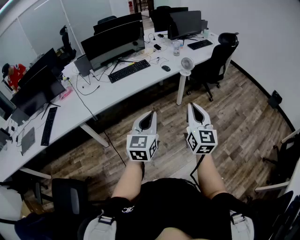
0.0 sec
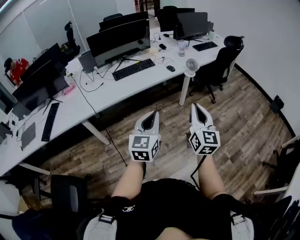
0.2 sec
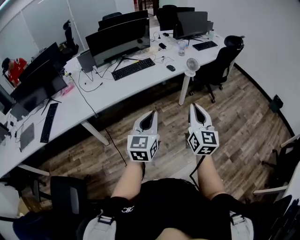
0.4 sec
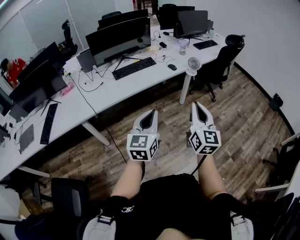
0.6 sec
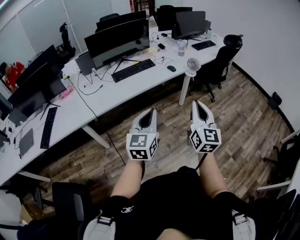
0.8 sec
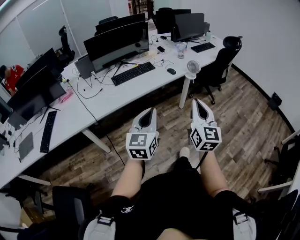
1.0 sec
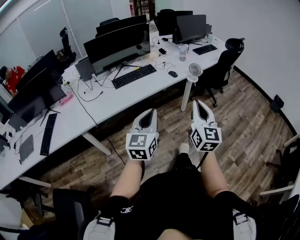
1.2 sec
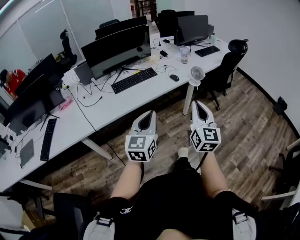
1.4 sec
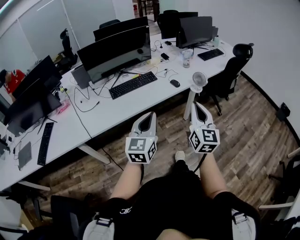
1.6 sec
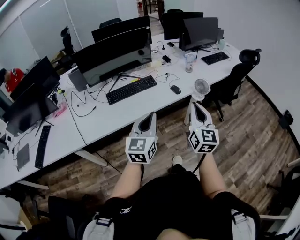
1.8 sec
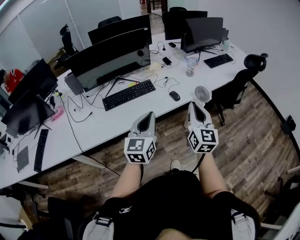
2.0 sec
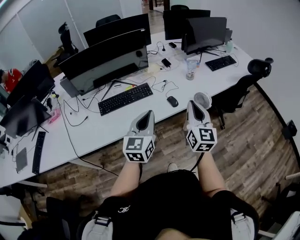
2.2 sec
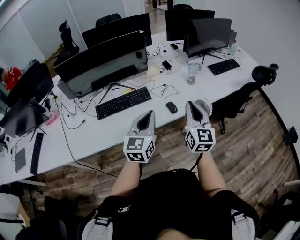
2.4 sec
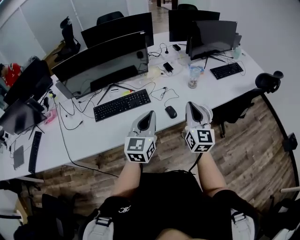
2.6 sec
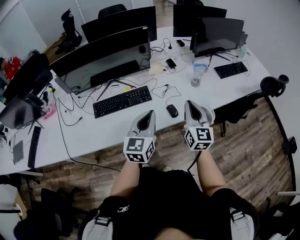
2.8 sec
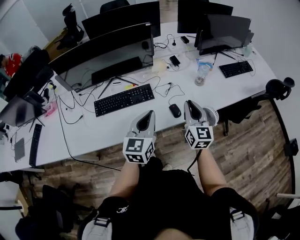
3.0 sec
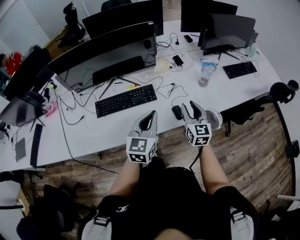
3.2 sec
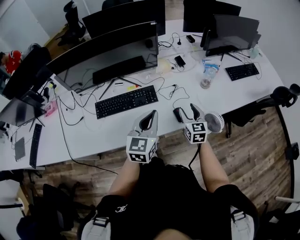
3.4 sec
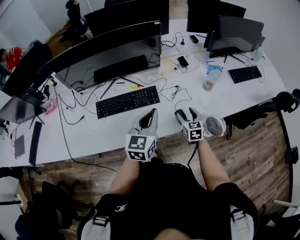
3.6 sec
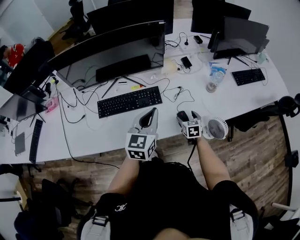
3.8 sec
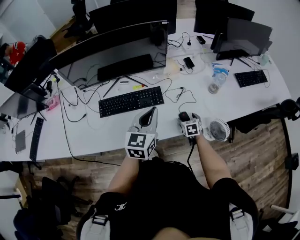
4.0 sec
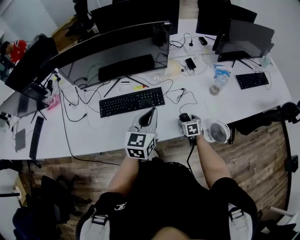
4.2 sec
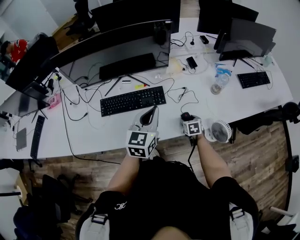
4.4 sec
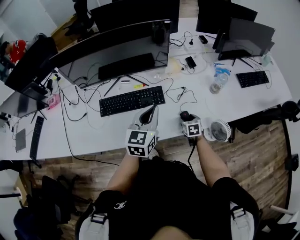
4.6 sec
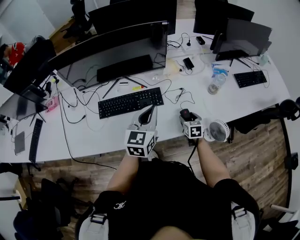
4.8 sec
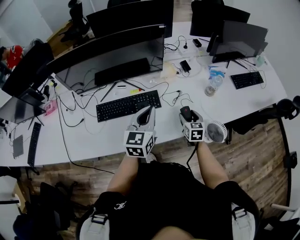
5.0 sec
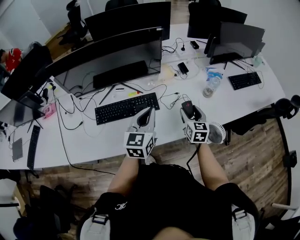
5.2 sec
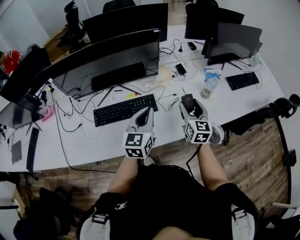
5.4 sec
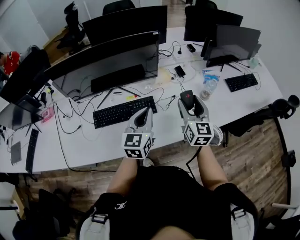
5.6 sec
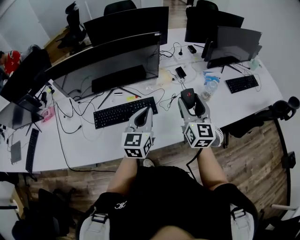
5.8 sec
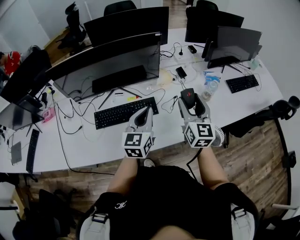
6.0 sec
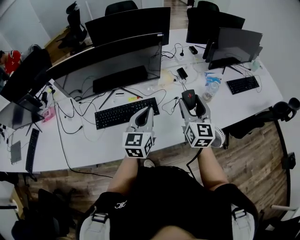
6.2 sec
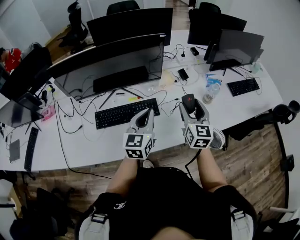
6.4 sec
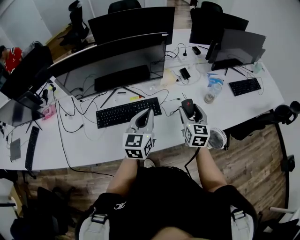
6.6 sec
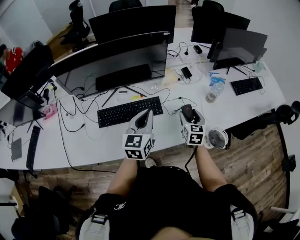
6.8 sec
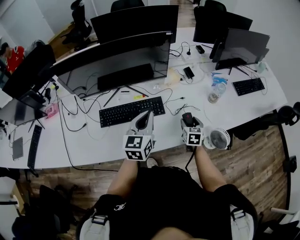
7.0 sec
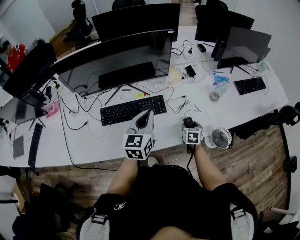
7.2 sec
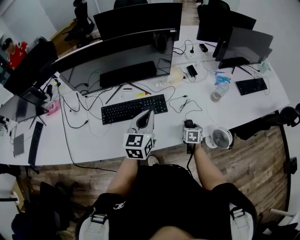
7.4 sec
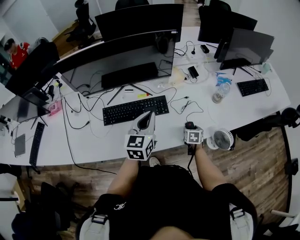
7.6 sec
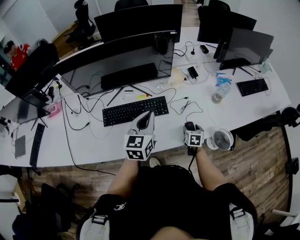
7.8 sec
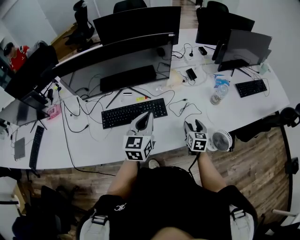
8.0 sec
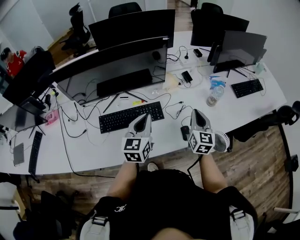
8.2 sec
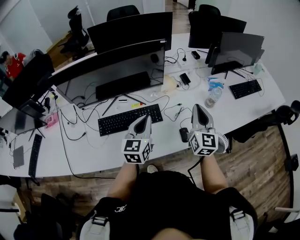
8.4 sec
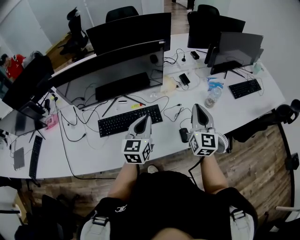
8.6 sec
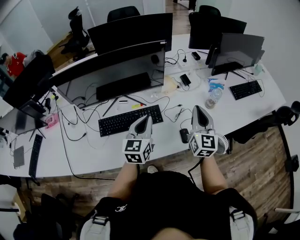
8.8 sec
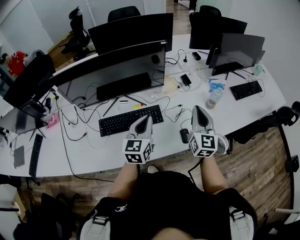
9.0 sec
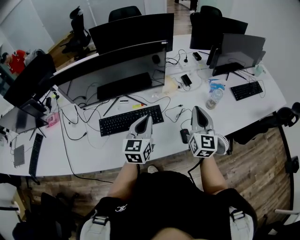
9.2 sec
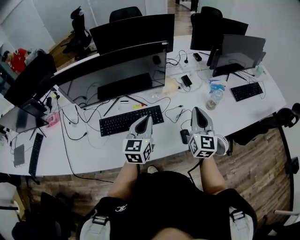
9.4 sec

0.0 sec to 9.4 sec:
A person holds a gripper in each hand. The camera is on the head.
0.0 sec to 1.6 sec: Both grippers travel together forward, about 20 cm.
1.6 sec to 3.2 sec: Both grippers are carried forward, some 40 cm. The right gripper swivels about 30 degrees.
3.2 sec to 4.8 sec: The right gripper shifts approximately 20 cm downward, tips its fingers downward by approximately 30 degrees, and opens up, while the left gripper is displaced forward by roughly 10 cm.
4.8 sec to 6.2 sec: The right gripper heads upward, covering roughly 30 cm, and points its fingers about 40 degrees further upward.
6.2 sec to 7.8 sec: The right gripper moves downward, about 35 cm, and tilts its fingers some 50 degrees downward. The left gripper shifts by roughly 5 cm.
7.8 sec to 9.4 sec: The right gripper shifts some 30 cm upward, points its fingers some 50 degrees further upward, and closes.

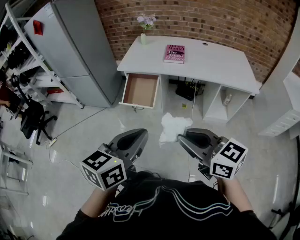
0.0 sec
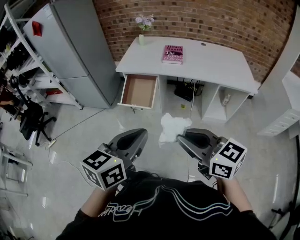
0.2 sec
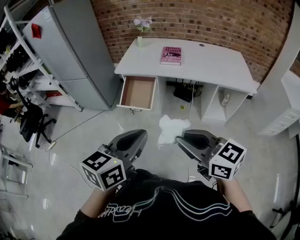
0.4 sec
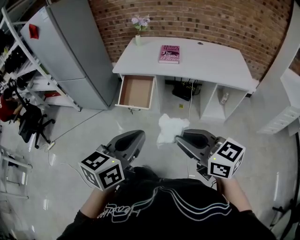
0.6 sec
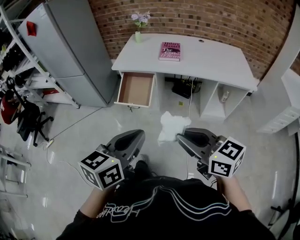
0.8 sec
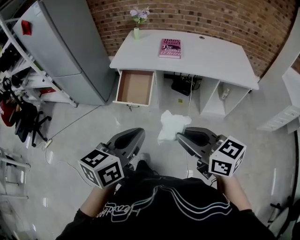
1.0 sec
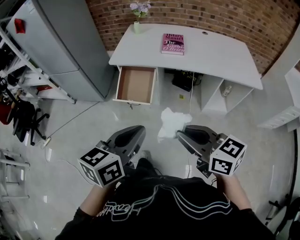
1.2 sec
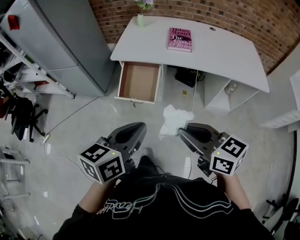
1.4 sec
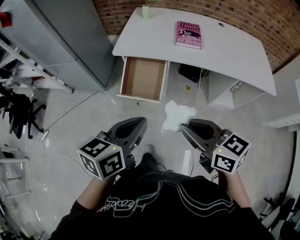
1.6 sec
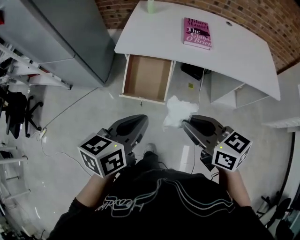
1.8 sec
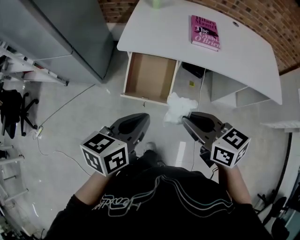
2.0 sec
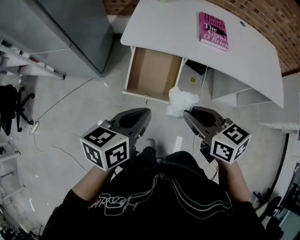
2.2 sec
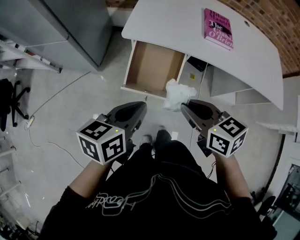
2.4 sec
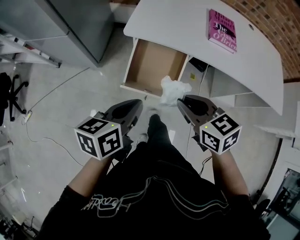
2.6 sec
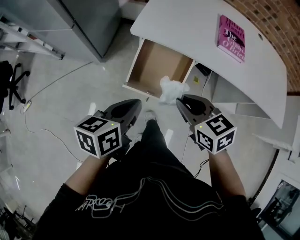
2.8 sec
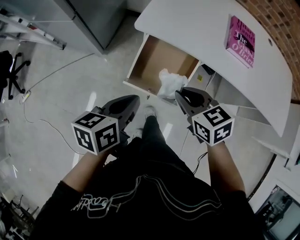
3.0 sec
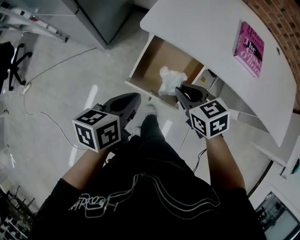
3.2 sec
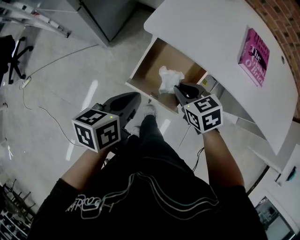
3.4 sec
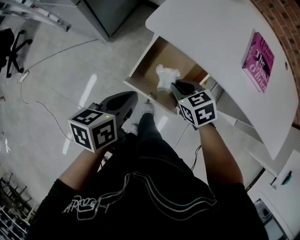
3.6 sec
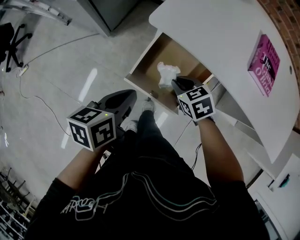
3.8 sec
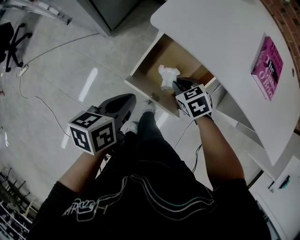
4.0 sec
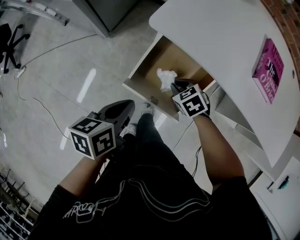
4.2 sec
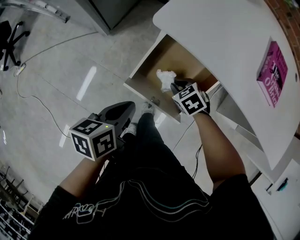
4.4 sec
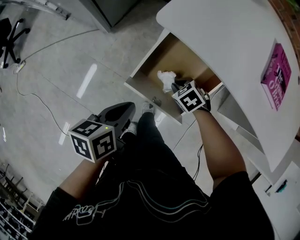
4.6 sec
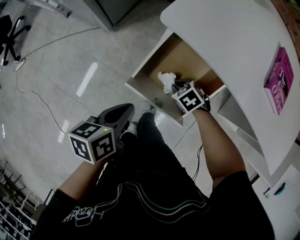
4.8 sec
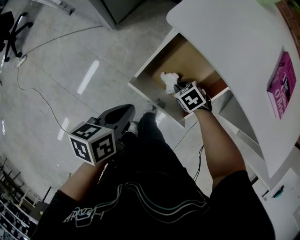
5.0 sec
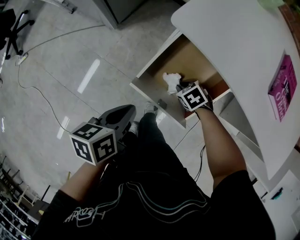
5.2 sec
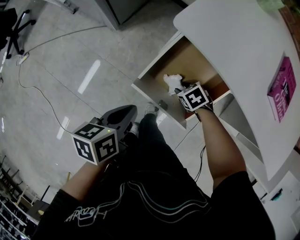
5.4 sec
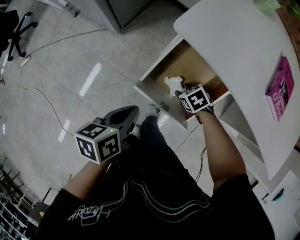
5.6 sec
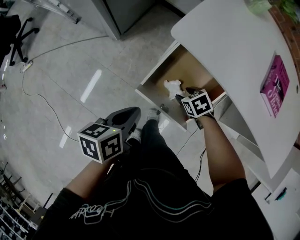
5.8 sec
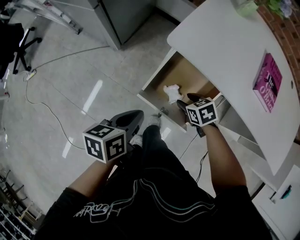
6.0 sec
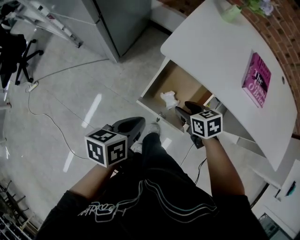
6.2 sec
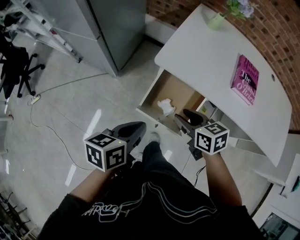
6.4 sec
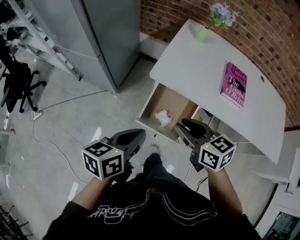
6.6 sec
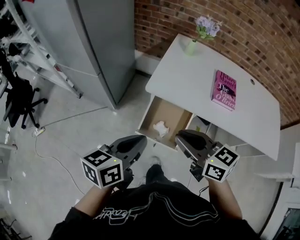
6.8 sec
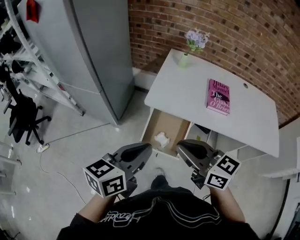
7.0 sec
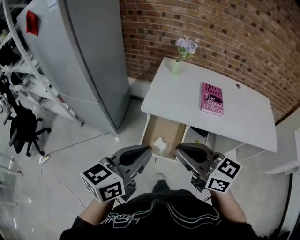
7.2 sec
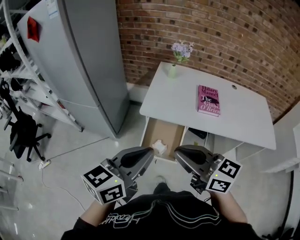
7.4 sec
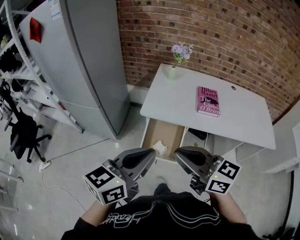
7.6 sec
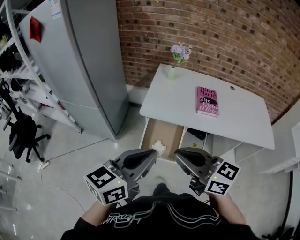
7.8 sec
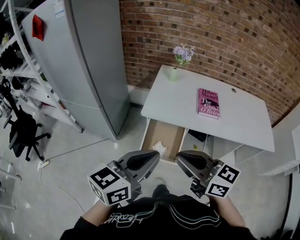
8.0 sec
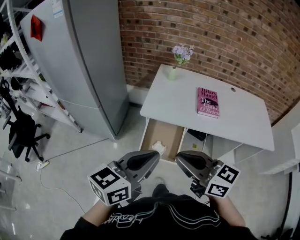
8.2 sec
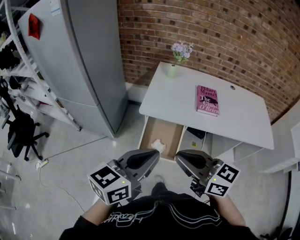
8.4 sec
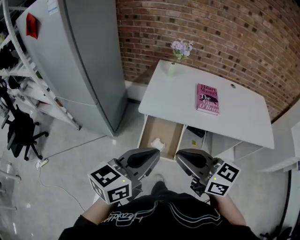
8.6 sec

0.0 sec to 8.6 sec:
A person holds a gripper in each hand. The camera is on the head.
0.0 sec to 1.4 sec: The two grippers go about 20 cm forward and downward.
1.4 sec to 2.8 sec: The grippers both shift forward, downward and to the left by approximately 40 cm. The right gripper swivels about 30 degrees.
2.8 sec to 4.4 sec: The right gripper goes roughly 35 cm downward and forward, and changes its angle by approximately 40 degrees; the left gripper moves downward and forward, roughly 20 cm, and swivels roughly 20 degrees.
4.4 sec to 5.8 sec: The right gripper opens up.
5.8 sec to 7.2 sec: The two grippers go some 50 cm upward. The left gripper points its fingers about 30 degrees further upward, while the right gripper tilts its fingers approximately 60 degrees upward, and closes up.
7.2 sec to 8.6 sec: There are only small adjustments of the grippers.

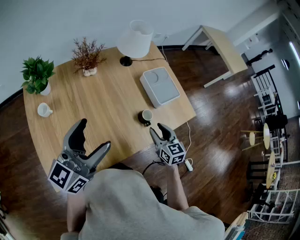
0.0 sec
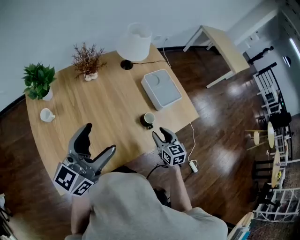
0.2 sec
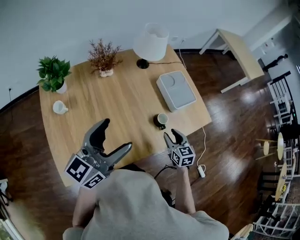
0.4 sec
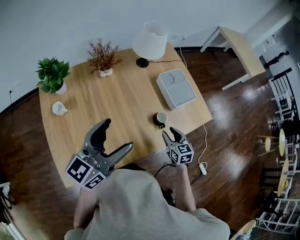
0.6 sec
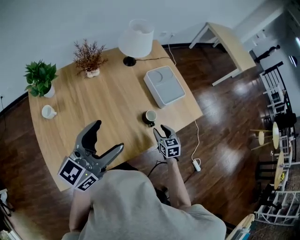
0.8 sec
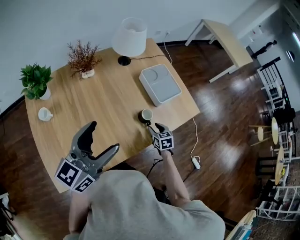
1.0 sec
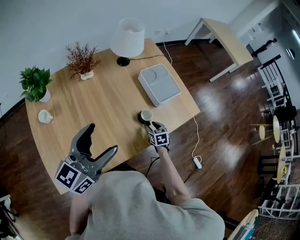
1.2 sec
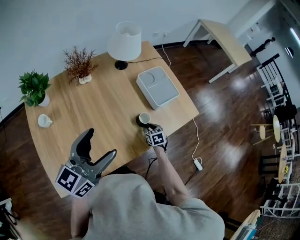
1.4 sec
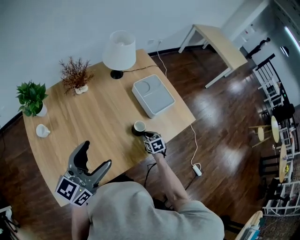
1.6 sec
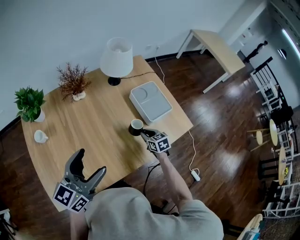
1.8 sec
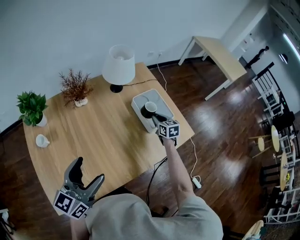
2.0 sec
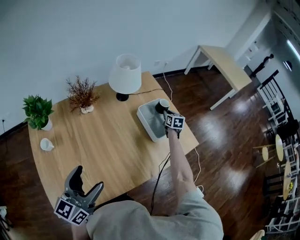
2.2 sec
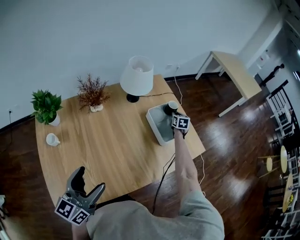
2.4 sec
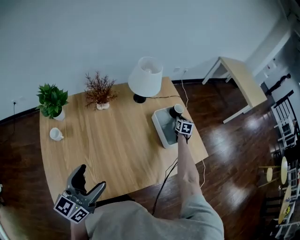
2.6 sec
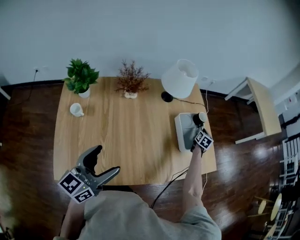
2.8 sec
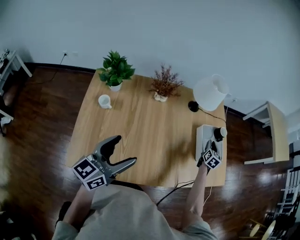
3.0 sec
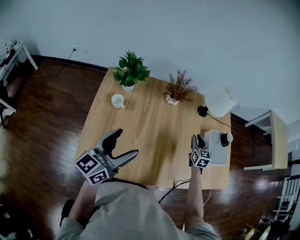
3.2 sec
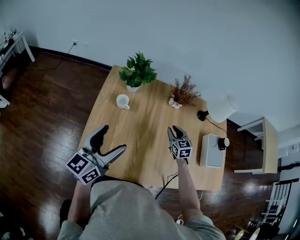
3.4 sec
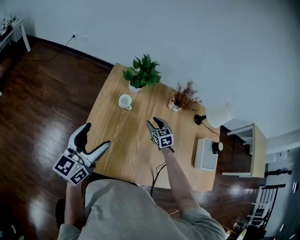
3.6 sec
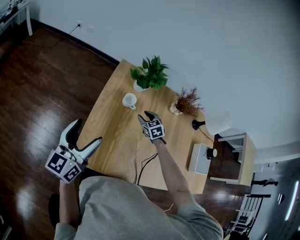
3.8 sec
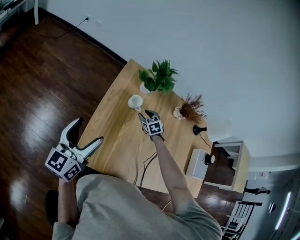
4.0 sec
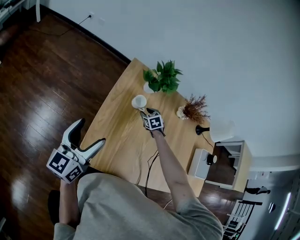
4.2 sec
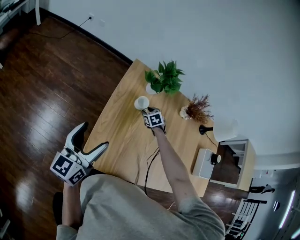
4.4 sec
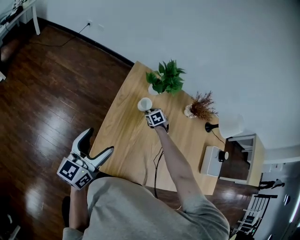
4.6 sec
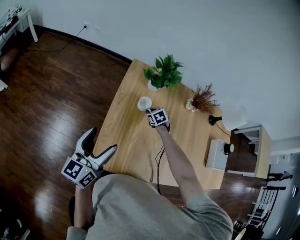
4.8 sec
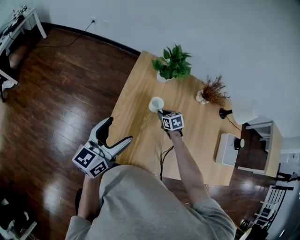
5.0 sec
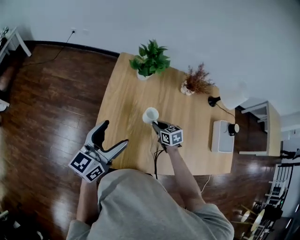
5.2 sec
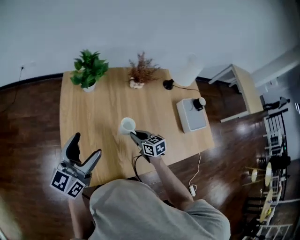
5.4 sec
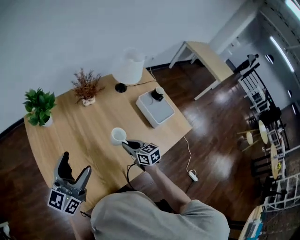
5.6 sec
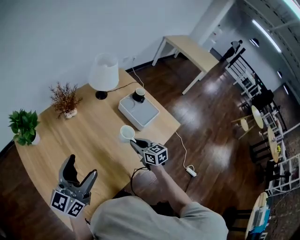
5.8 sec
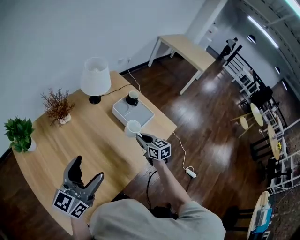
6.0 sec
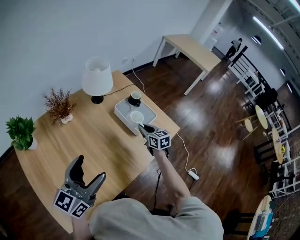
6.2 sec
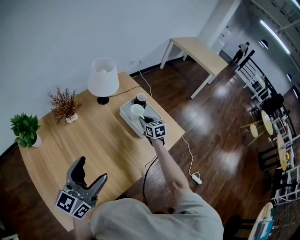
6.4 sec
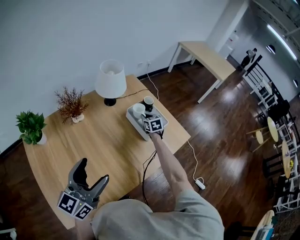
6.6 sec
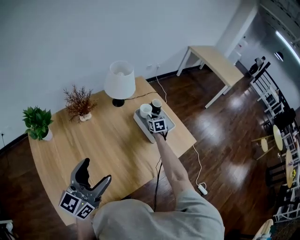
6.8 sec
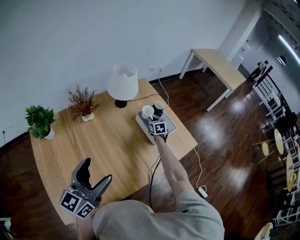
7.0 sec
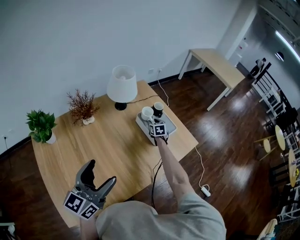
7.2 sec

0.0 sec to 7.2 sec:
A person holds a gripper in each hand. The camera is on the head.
0.0 sec to 1.4 sec: The right gripper heads downward, covering roughly 20 cm, and swivels approximately 30 degrees. Meanwhile the left gripper goes approximately 5 cm to the right.
1.4 sec to 2.8 sec: The right gripper travels forward by approximately 30 cm, and rotates about 30 degrees. Meanwhile the left gripper travels to the left by roughly 5 cm.
2.8 sec to 4.4 sec: Both grippers are carried approximately 60 cm. The left gripper changes its angle by about 40 degrees; the right gripper rotates around the line of its fingers by some 70 degrees, counterclockwise from behind.
4.4 sec to 5.8 sec: The two grippers travel together, about 50 cm. The right gripper rolls clockwise, seen from behind, by roughly 50 degrees, and closes up; the left gripper changes its angle by roughly 50 degrees.
5.8 sec to 7.2 sec: The left gripper heads to the right, covering some 5 cm. The right gripper shifts some 25 cm forward, rotates some 30 degrees, and opens its fingers.
